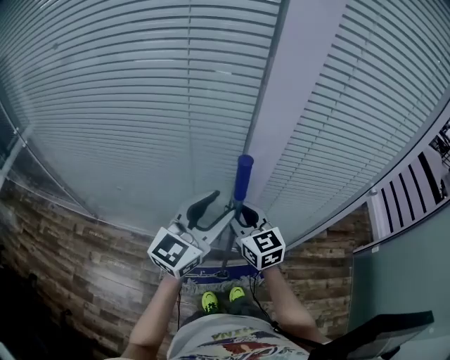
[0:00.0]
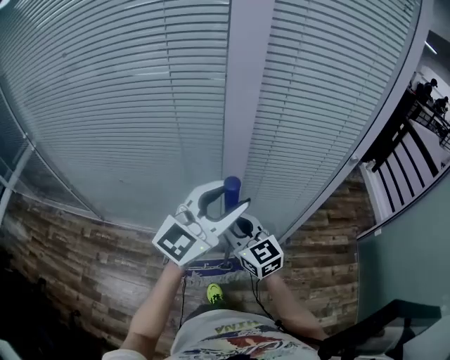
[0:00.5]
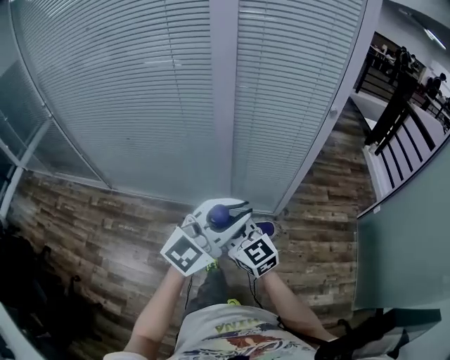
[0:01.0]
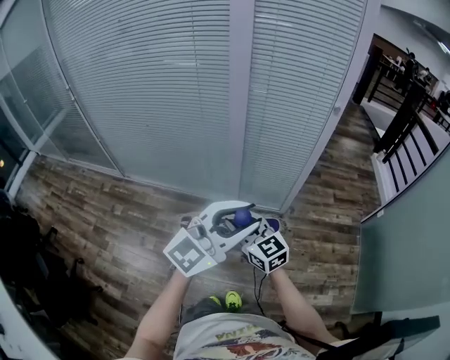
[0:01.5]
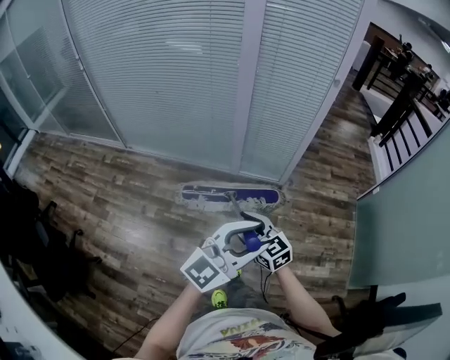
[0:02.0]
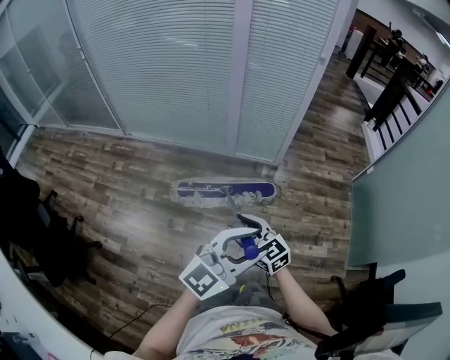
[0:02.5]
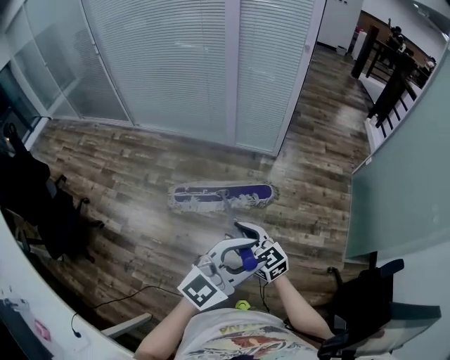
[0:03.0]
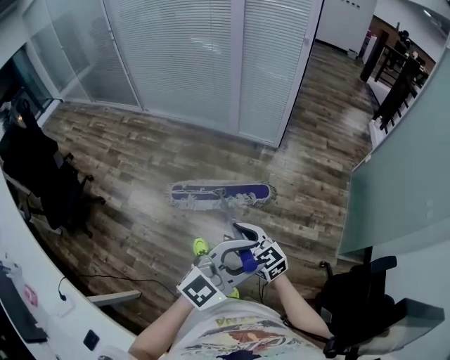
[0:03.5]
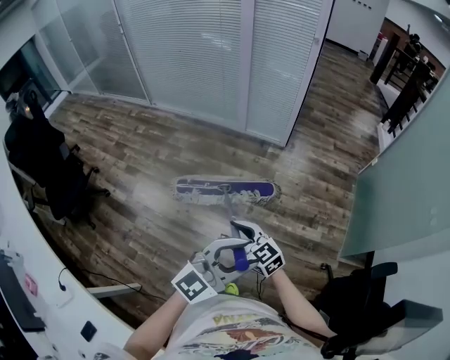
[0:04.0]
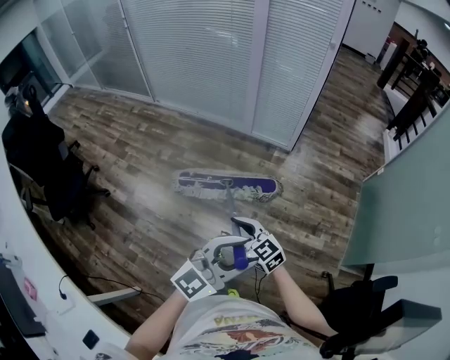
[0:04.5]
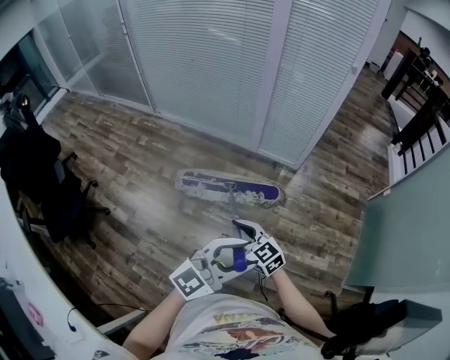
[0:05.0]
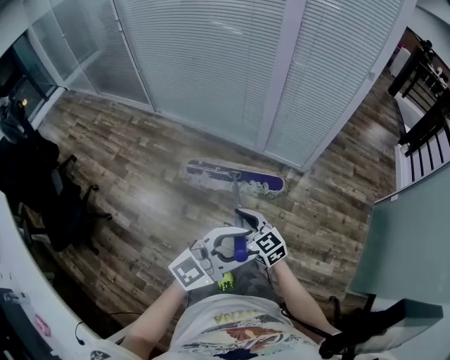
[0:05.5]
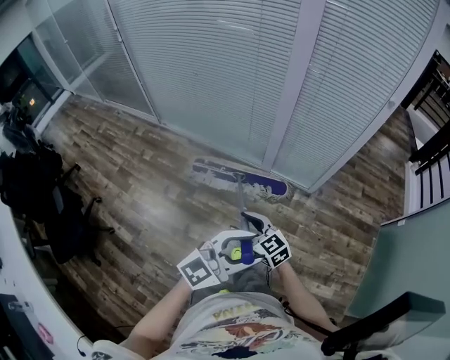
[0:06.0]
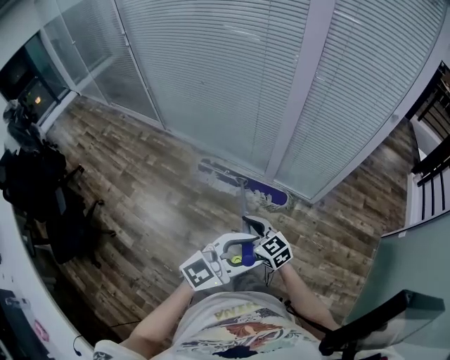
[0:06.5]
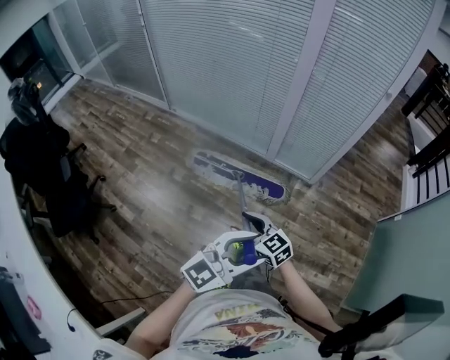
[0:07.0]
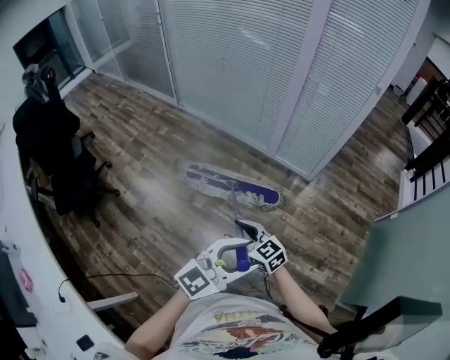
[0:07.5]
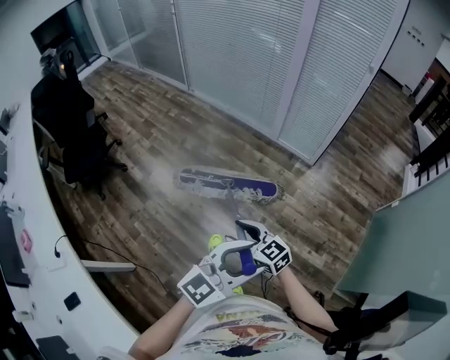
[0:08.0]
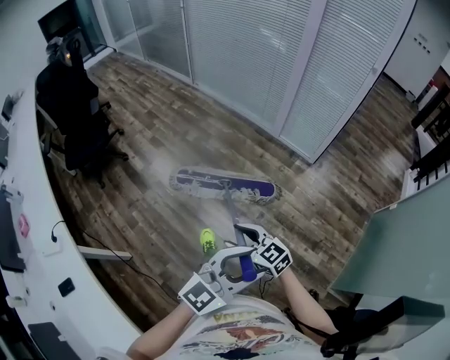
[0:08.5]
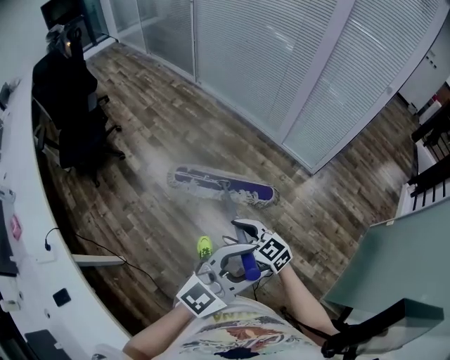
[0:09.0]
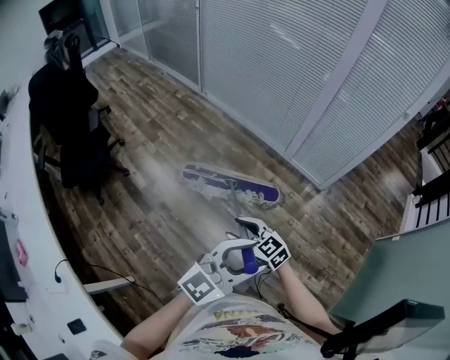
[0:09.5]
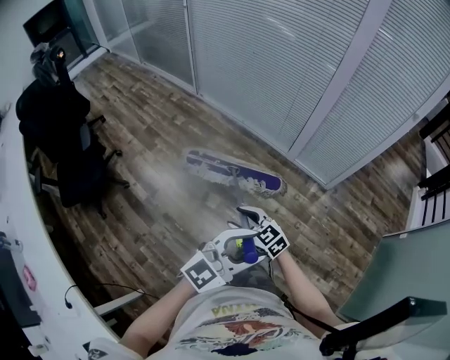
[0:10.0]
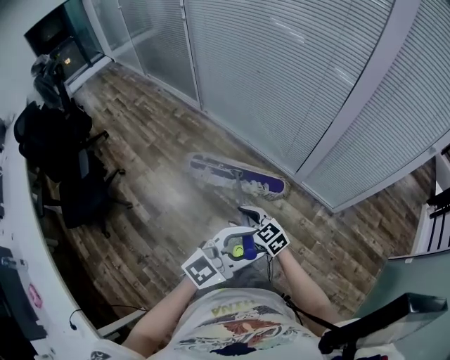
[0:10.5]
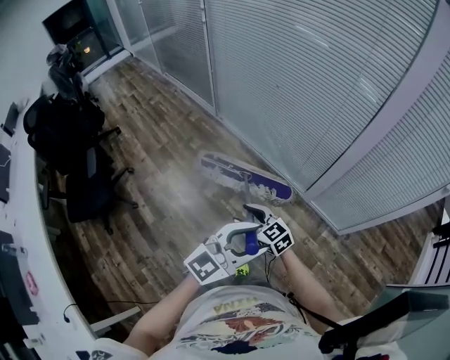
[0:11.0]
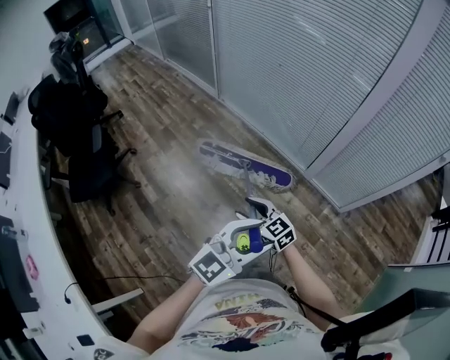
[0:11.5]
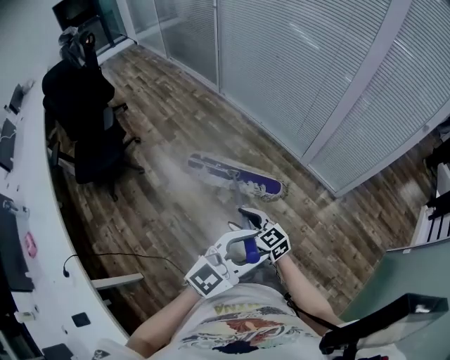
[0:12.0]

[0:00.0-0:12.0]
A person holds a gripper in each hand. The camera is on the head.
0:00.0 to 0:02.0: Both grippers are carried backward, approximately 70 cm. The left gripper closes and opens again.
0:02.0 to 0:04.0: Both grippers are carried backward and to the right, some 50 cm.
0:04.0 to 0:06.0: Both grippers are carried forward, some 60 cm.
0:06.0 to 0:08.0: The two grippers travel together, backward, some 50 cm.
0:08.0 to 0:10.0: The pair of grippers is taken forward and to the left, roughly 40 cm.
0:10.0 to 0:12.0: The right gripper moves approximately 30 cm forward and comes back. The left gripper goes forward and returns, some 35 cm each way.

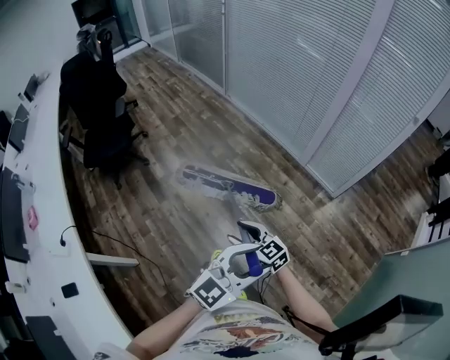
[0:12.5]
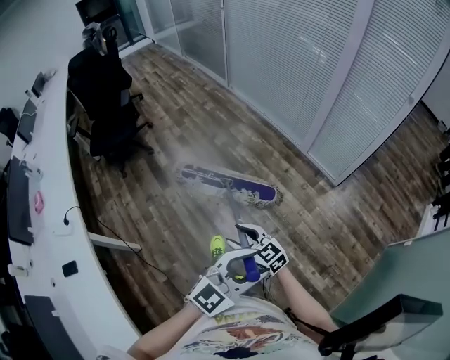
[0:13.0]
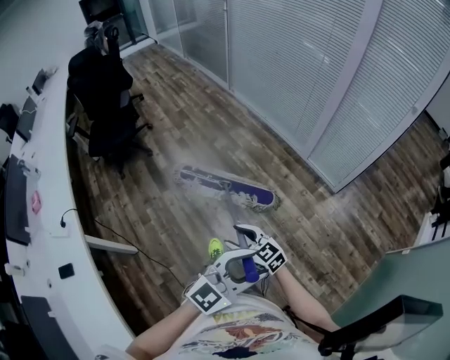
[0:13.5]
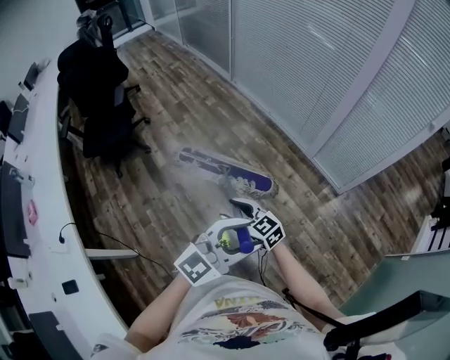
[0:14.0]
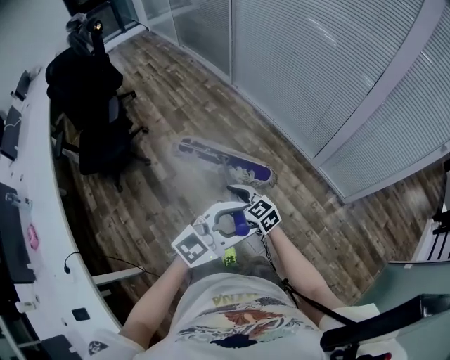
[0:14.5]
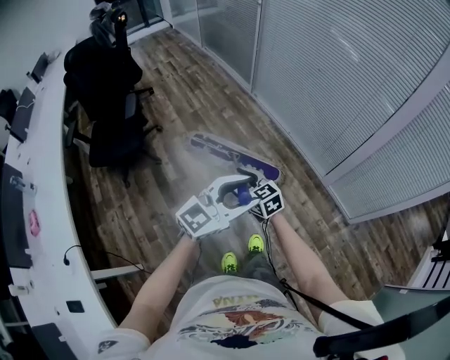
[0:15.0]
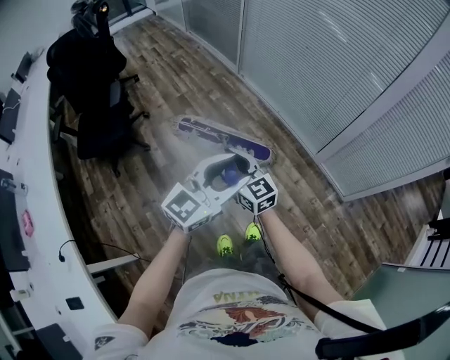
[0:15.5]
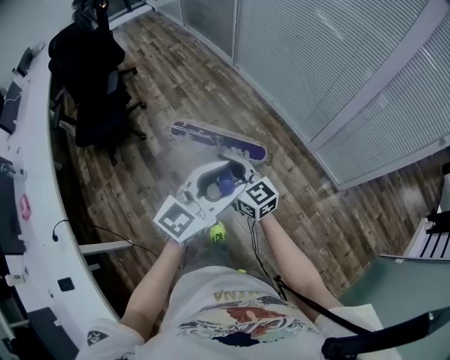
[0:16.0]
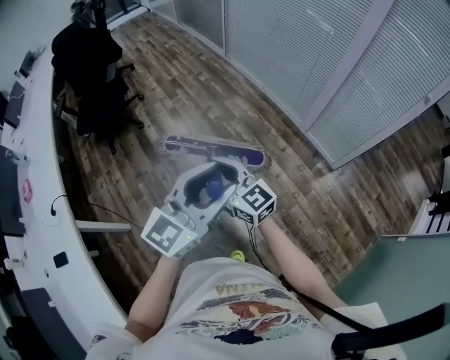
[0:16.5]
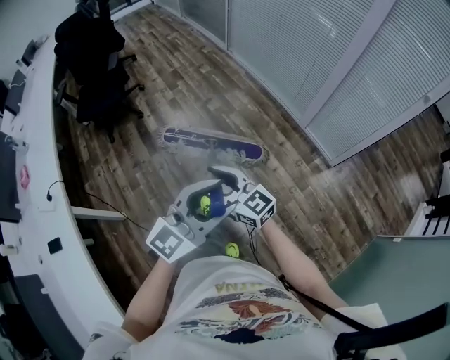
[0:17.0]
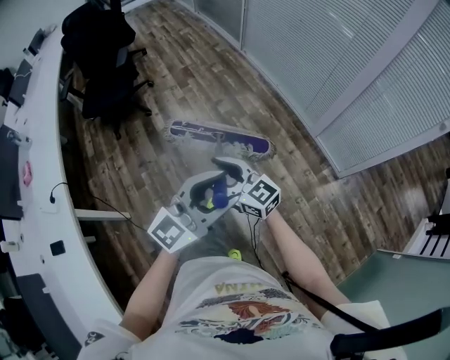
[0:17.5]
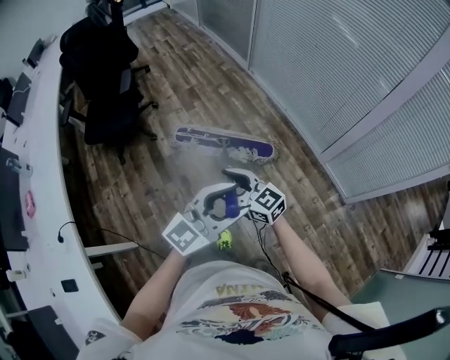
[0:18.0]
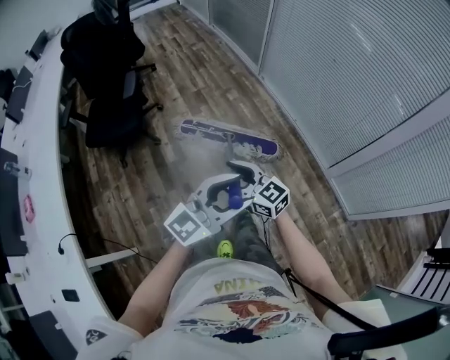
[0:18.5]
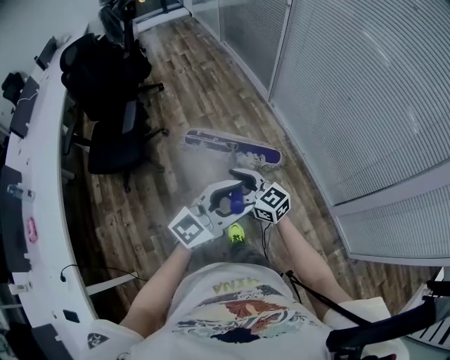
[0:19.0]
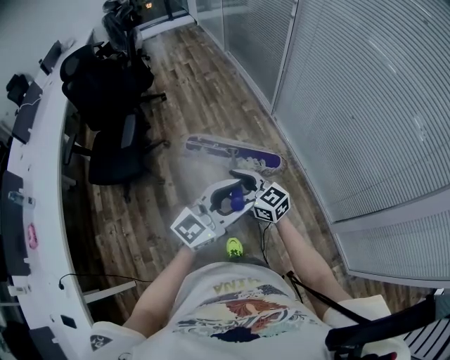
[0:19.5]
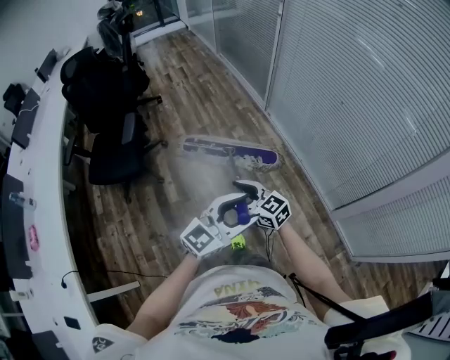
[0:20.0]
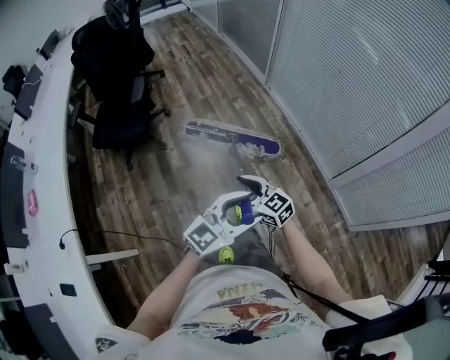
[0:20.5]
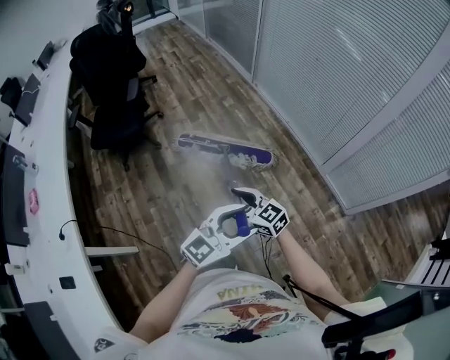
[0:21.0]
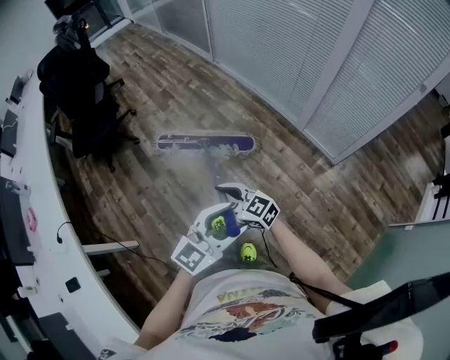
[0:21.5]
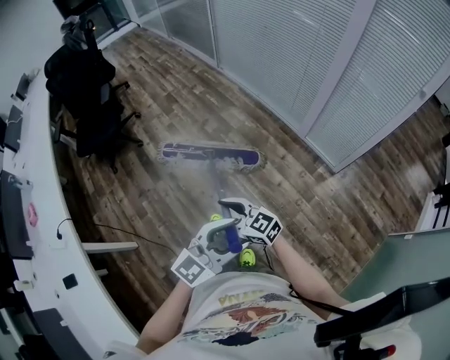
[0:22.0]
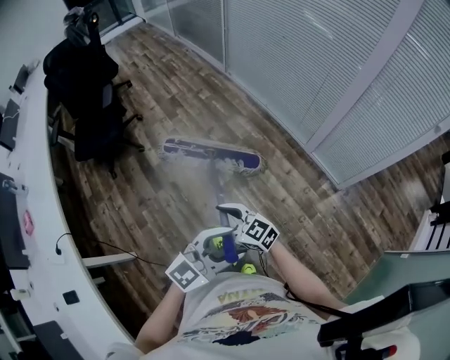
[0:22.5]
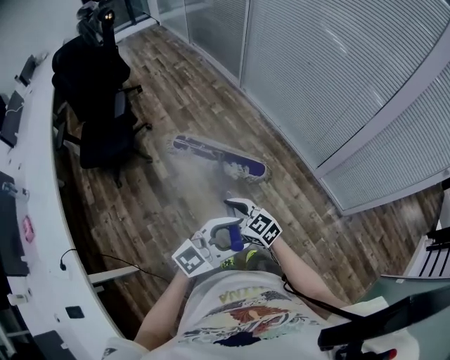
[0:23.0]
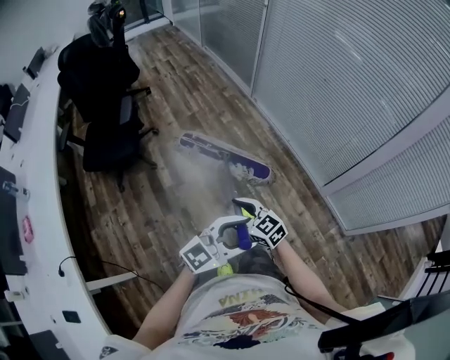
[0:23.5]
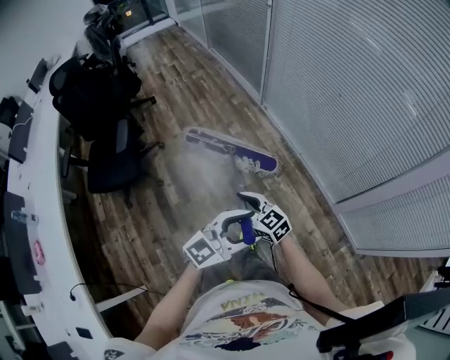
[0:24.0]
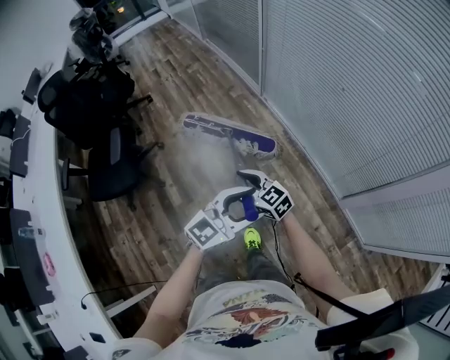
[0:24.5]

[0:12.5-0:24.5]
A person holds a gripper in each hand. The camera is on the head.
0:12.5 to 0:14.5: Both grippers travel together forward, roughly 30 cm.
0:14.5 to 0:16.5: The right gripper is displaced backward and upward by roughly 30 cm, and turns by roughly 20 degrees. The left gripper heads backward, covering some 20 cm, and changes its angle by about 20 degrees.
0:16.5 to 0:18.5: The two grippers go roughly 35 cm forward.
0:18.5 to 0:20.5: The left gripper travels downward by approximately 5 cm, and moves about 30 cm forward and comes back, while the right gripper travels forward and back again, some 30 cm each way.
0:20.5 to 0:22.5: The right gripper changes place by roughly 30 cm, while the left gripper changes place by approximately 30 cm.
0:22.5 to 0:24.5: The pair of grippers is taken some 70 cm.

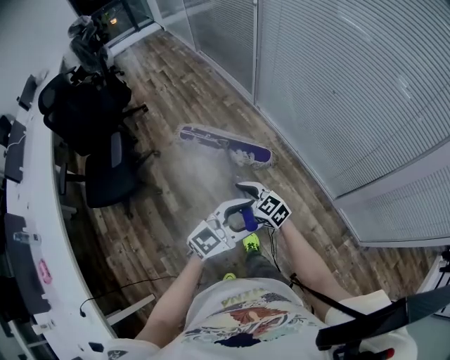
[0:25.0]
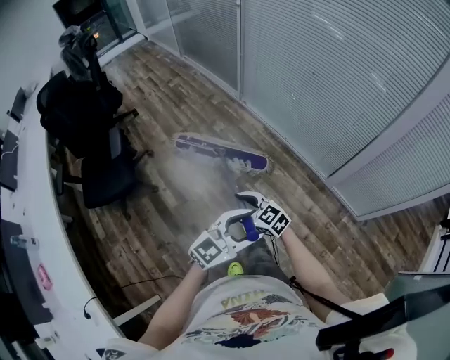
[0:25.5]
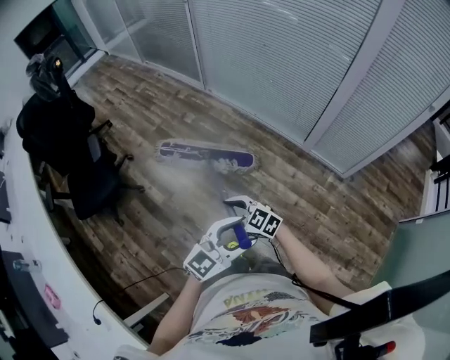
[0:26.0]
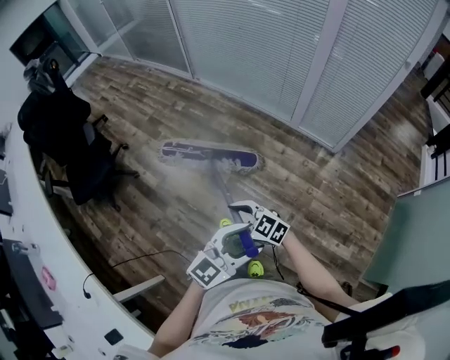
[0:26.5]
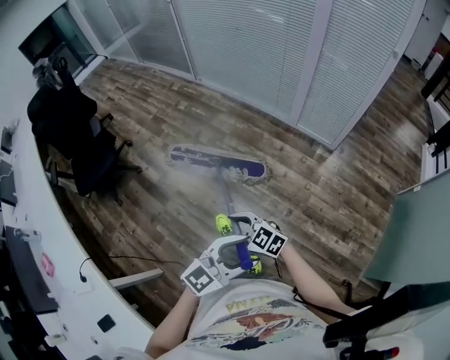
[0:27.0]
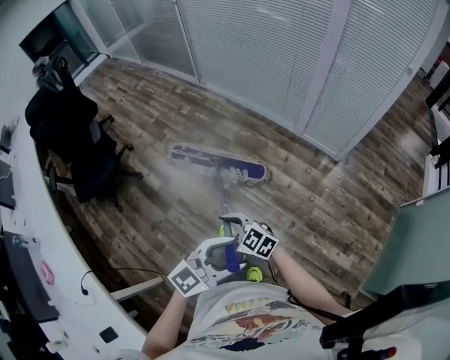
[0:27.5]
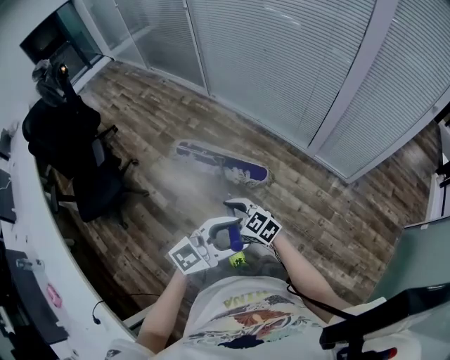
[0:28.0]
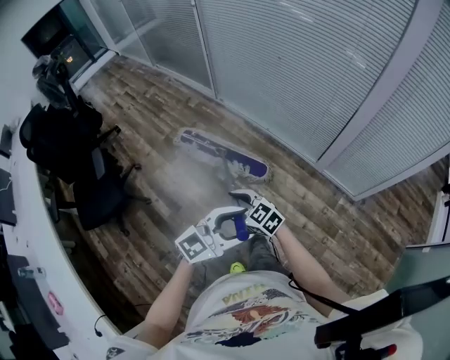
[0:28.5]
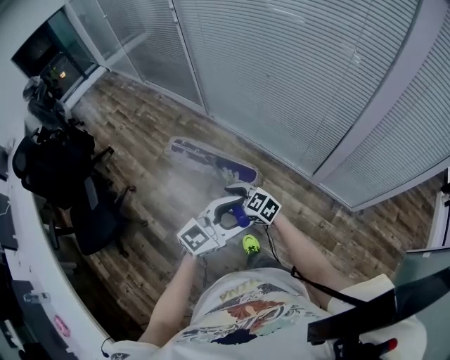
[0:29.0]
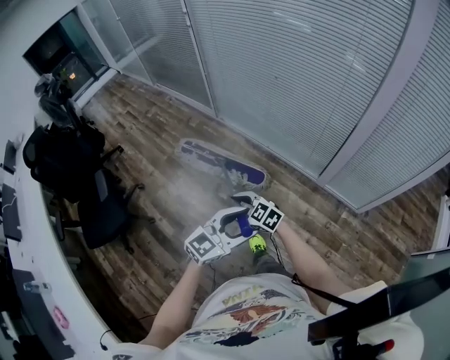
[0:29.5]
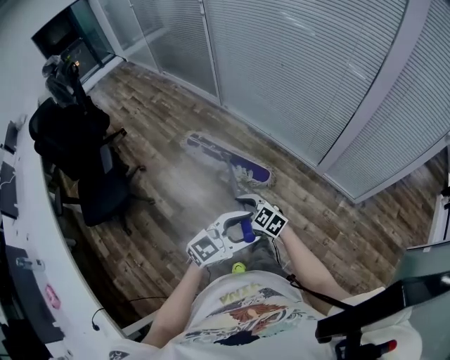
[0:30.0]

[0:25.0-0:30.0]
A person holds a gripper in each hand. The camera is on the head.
0:25.0 to 0:27.5: The two grippers travel together, approximately 60 cm. The left gripper swivels some 20 degrees.
